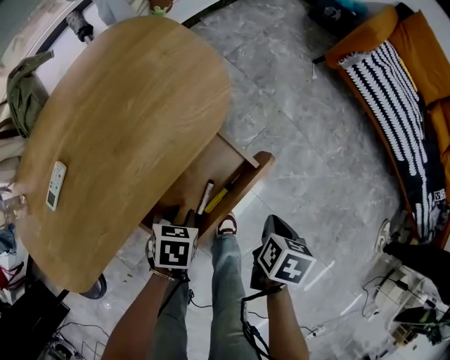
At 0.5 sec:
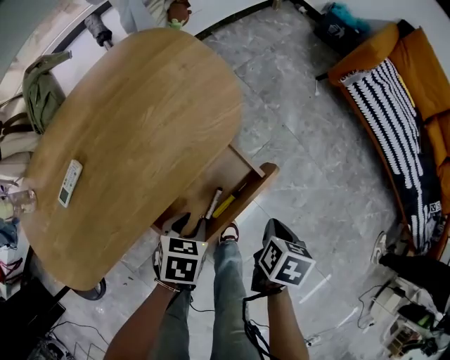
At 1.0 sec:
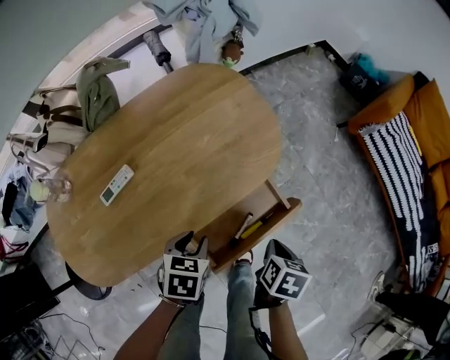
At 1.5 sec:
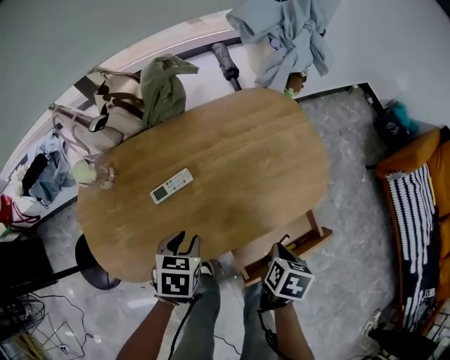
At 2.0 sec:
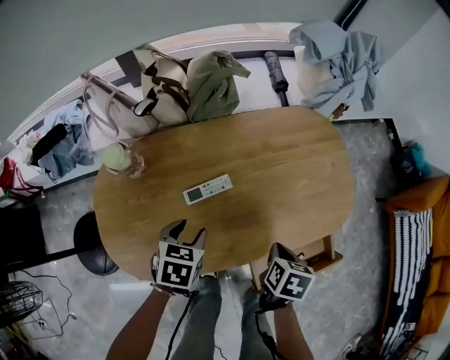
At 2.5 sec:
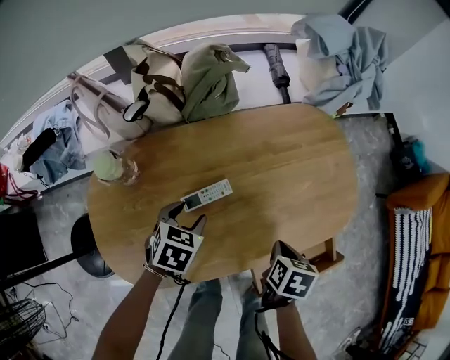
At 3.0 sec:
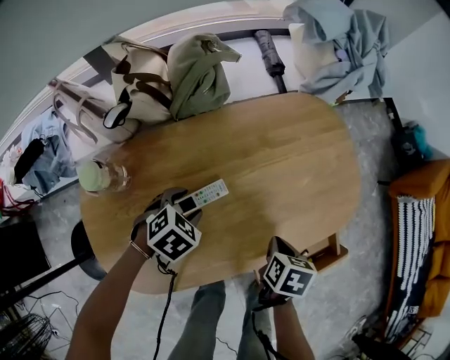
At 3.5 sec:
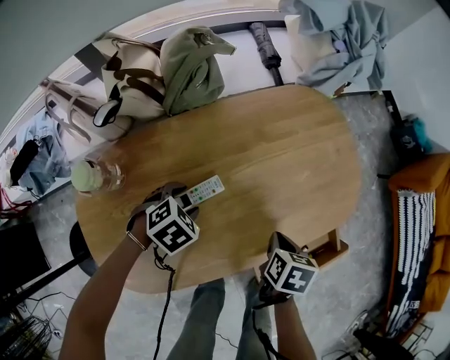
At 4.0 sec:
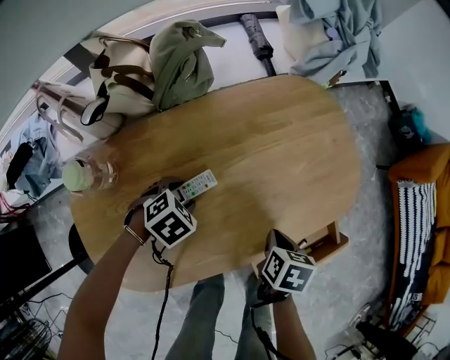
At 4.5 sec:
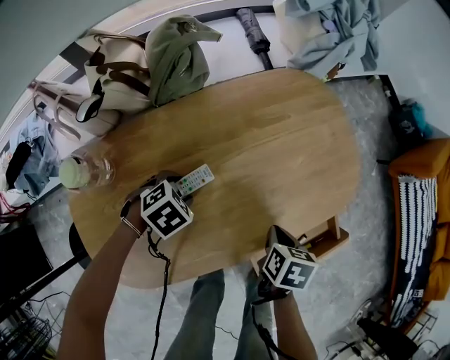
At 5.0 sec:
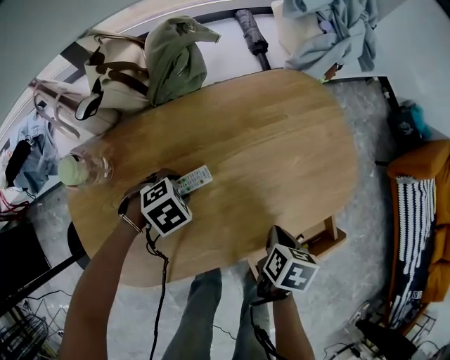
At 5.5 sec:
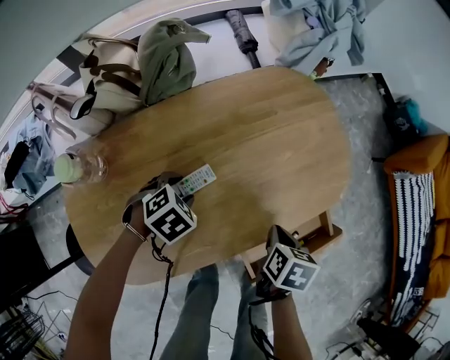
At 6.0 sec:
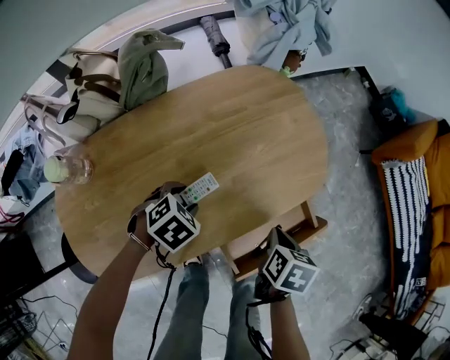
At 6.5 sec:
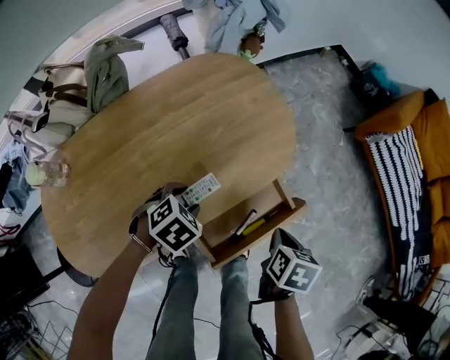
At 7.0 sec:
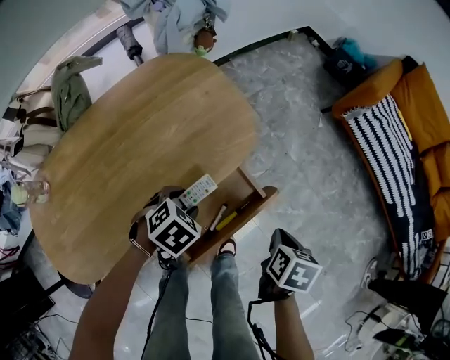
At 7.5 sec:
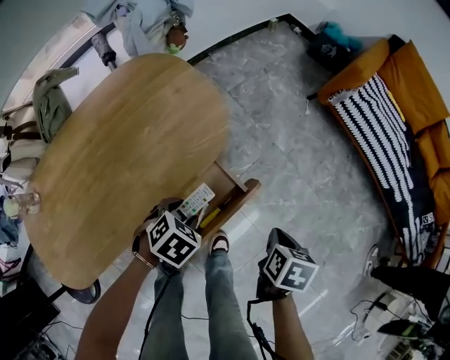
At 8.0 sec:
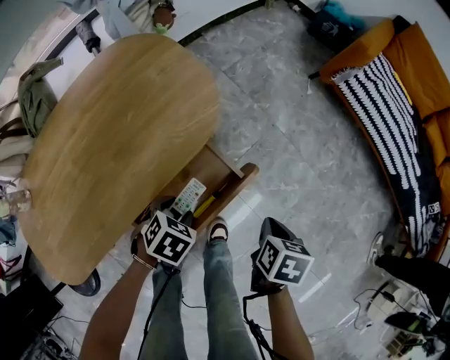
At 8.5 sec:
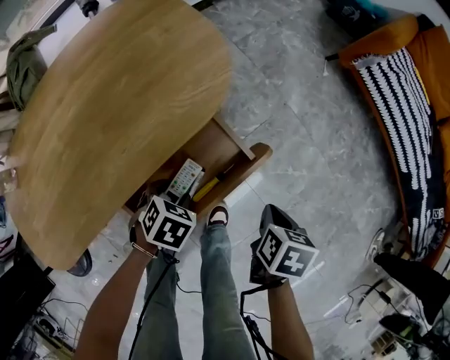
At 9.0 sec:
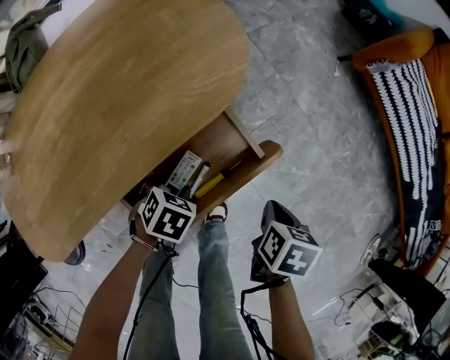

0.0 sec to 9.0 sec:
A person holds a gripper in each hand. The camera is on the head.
0.0 sec to 2.0 sec: The left gripper ends up approximately 40 cm from where it was, and rotates approximately 30 degrees; the right gripper changes place by roughly 35 cm, and turns by roughly 40 degrees.
2.0 sec to 4.5 sec: The left gripper ends up approximately 15 cm from where it was, and rolls clockwise, seen from behind, by some 40 degrees, while the right gripper ends up some 5 cm from where it was.
4.5 sec to 7.0 sec: The left gripper changes place by some 35 cm, while the right gripper changes place by roughly 35 cm, and swivels approximately 20 degrees.
7.0 sec to 9.0 sec: The grippers both shift downward by approximately 15 cm.

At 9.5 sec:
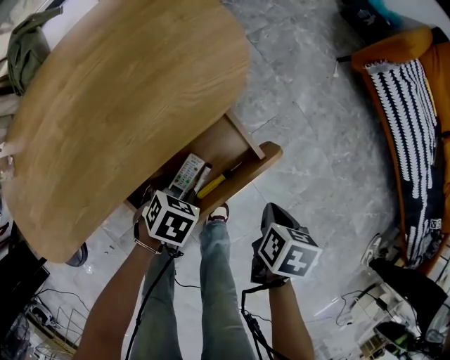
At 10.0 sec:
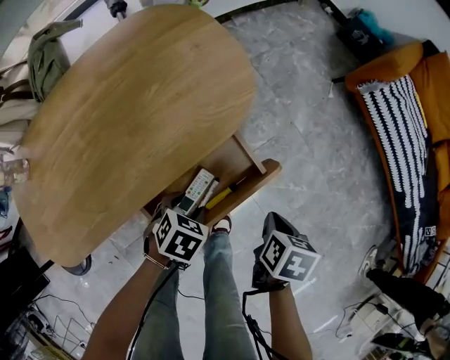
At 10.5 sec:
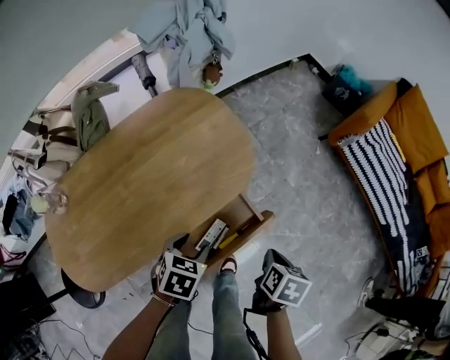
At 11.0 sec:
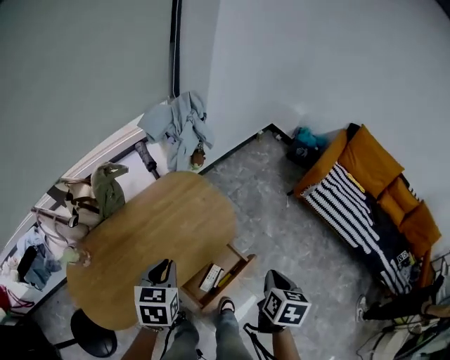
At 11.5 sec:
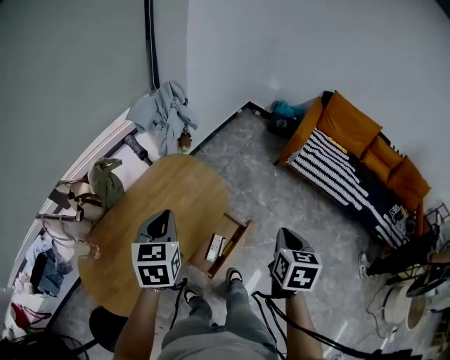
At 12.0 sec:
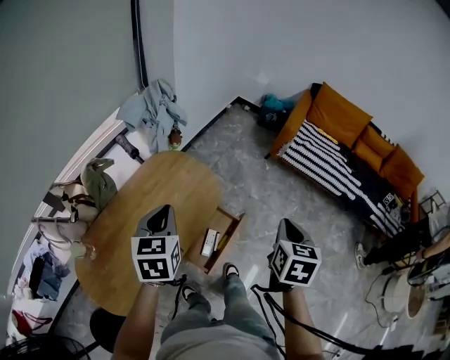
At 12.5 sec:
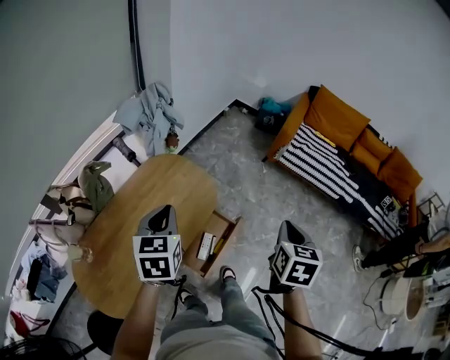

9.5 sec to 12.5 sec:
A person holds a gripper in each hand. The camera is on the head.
9.5 sec to 11.0 sec: Both grippers move upward, roughly 40 cm. The left gripper tips its fingers upward by about 30 degrees, and closes its fingers, while the right gripper swivels approximately 30 degrees.
11.0 sec to 12.5 sec: The left gripper shifts roughly 10 cm upward. The right gripper is displaced upward and to the right by approximately 15 cm.

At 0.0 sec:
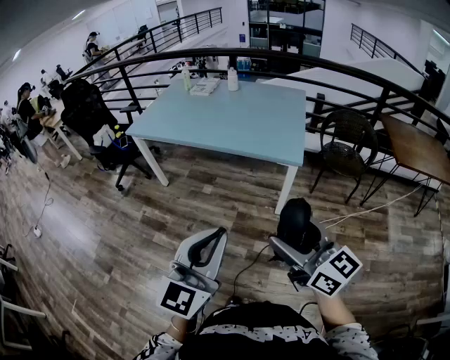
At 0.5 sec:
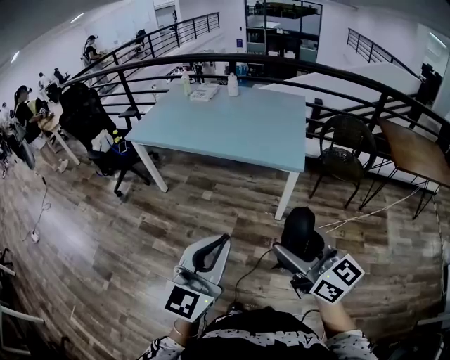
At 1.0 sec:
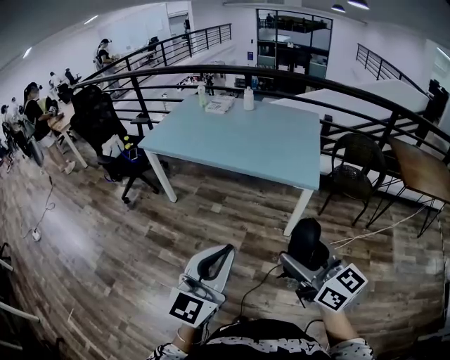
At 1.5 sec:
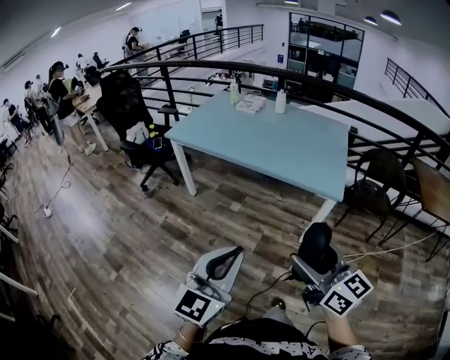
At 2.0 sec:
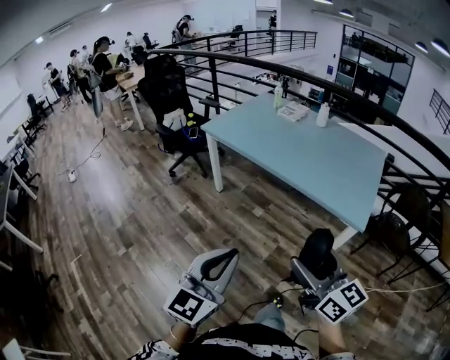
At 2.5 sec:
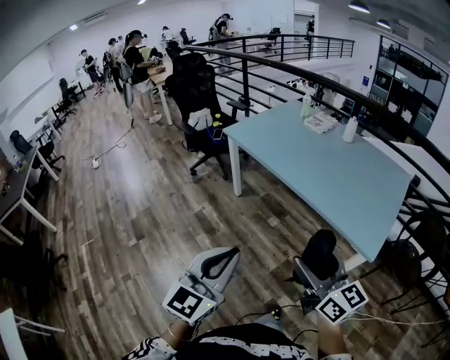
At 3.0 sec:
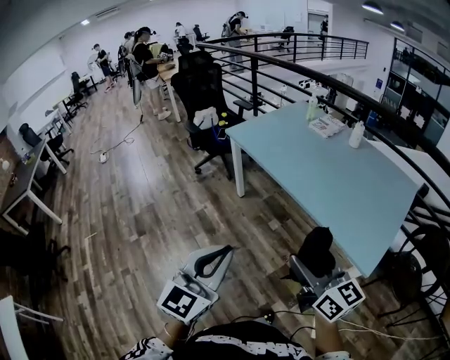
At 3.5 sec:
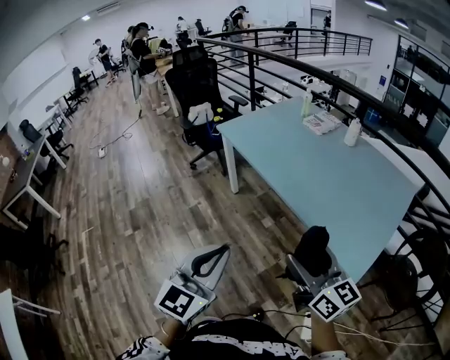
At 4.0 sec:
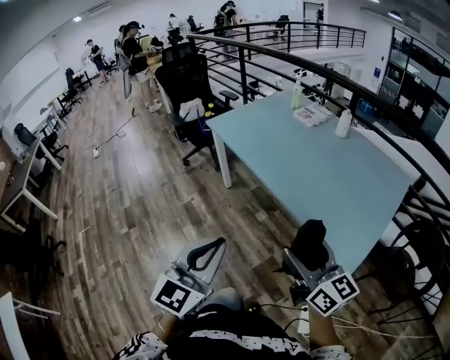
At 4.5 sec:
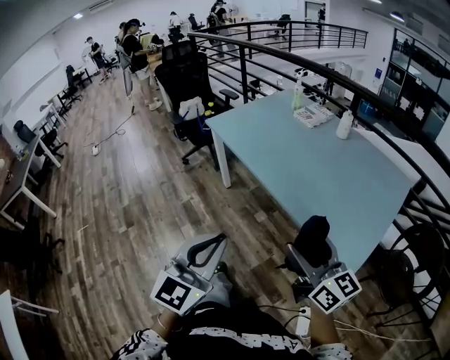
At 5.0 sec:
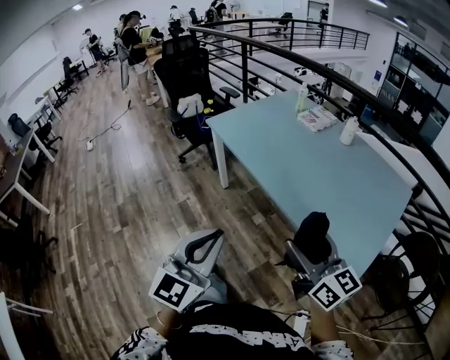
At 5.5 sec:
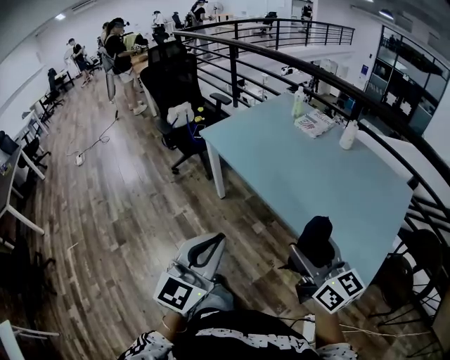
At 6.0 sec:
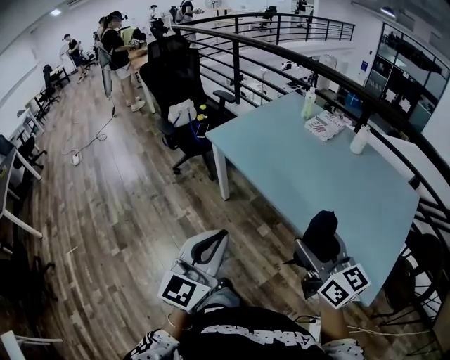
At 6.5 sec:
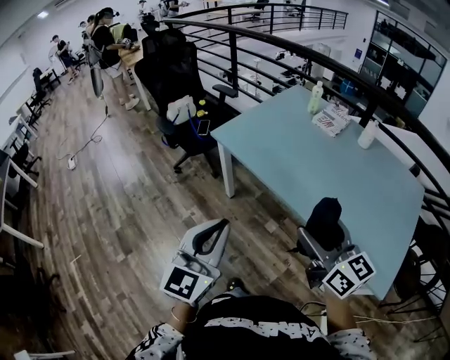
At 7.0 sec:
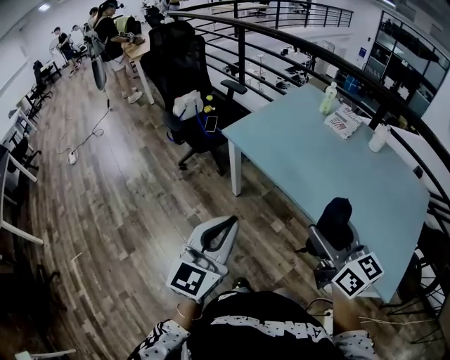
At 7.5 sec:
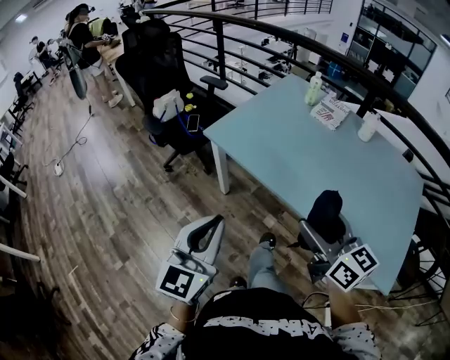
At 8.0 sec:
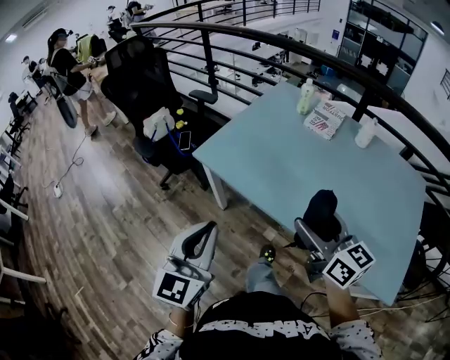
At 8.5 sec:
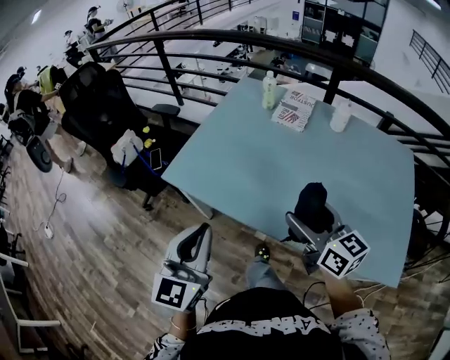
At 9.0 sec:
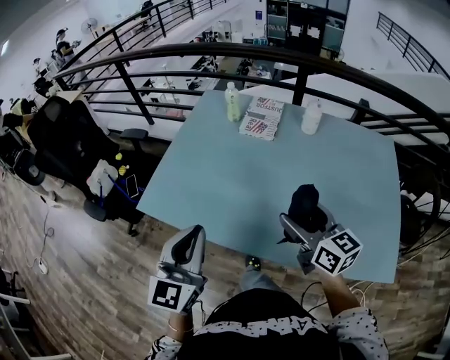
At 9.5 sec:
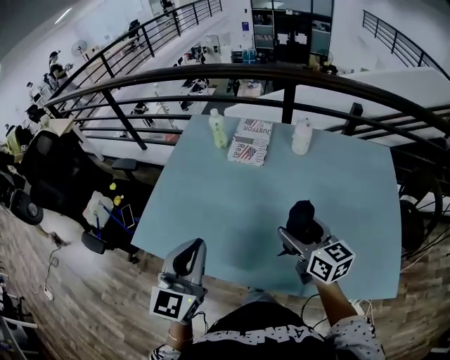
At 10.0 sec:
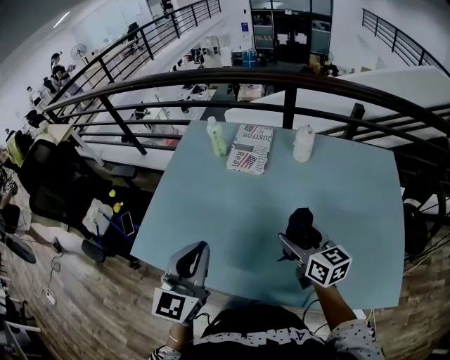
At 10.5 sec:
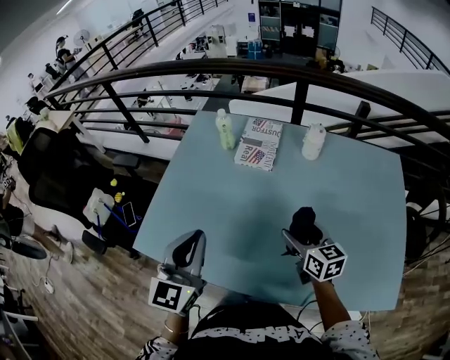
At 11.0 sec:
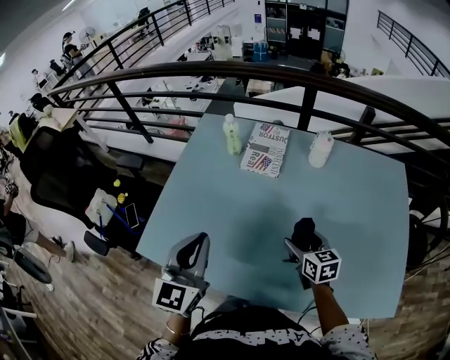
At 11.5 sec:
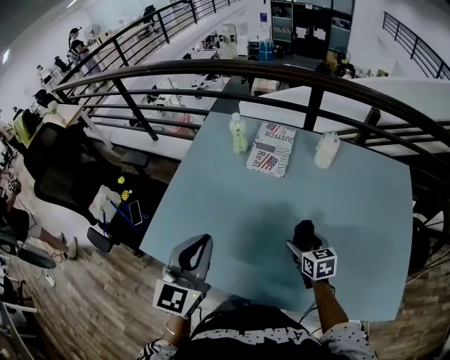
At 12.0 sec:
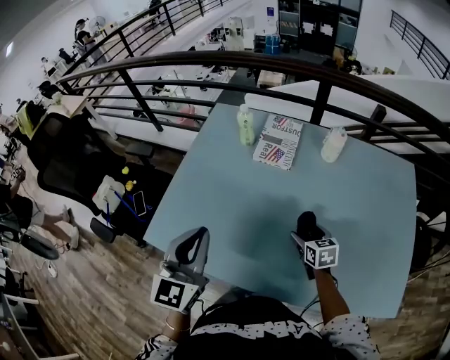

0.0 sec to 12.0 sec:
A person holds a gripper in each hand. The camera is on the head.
0.0 sec to 2.0 sec: The two grippers go roughly 20 cm to the left and forward.
2.0 sec to 4.0 sec: Both grippers travel together to the right and forward, approximately 30 cm.
4.0 sec to 6.0 sec: The two grippers go some 30 cm forward and to the left.
6.0 sec to 8.0 sec: The left gripper moves forward and to the left, roughly 25 cm. Meanwhile the right gripper goes about 25 cm forward.
8.0 sec to 10.0 sec: The left gripper moves forward and to the right, roughly 40 cm, and swivels approximately 20 degrees, while the right gripper goes roughly 35 cm forward, to the right and downward, and swivels about 30 degrees.
10.0 sec to 12.0 sec: The left gripper goes roughly 10 cm to the left; the right gripper shifts approximately 15 cm downward, and changes its angle by roughly 30 degrees.

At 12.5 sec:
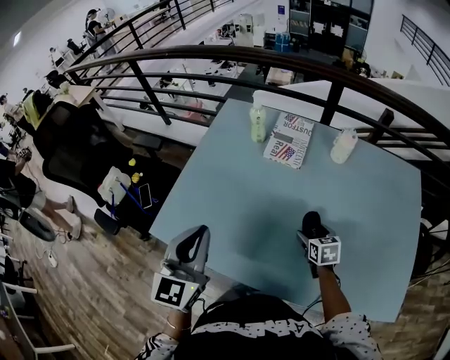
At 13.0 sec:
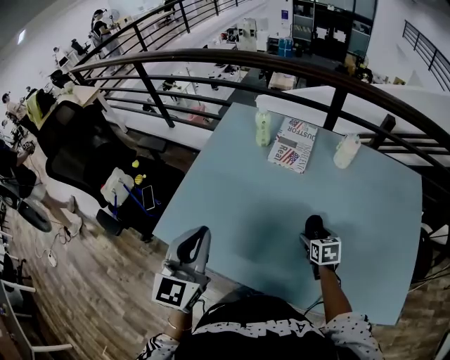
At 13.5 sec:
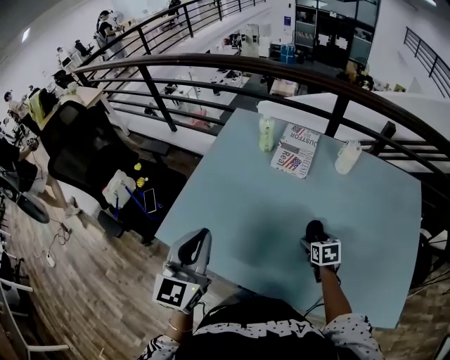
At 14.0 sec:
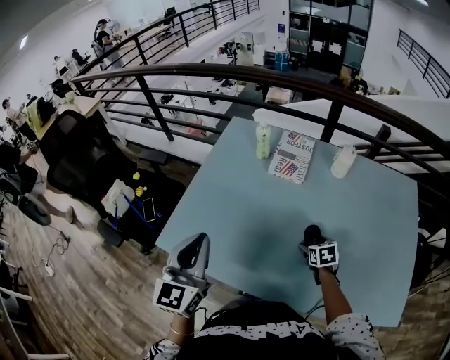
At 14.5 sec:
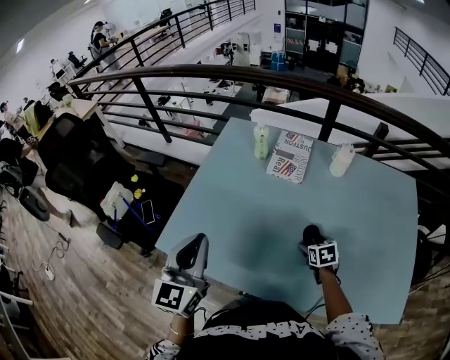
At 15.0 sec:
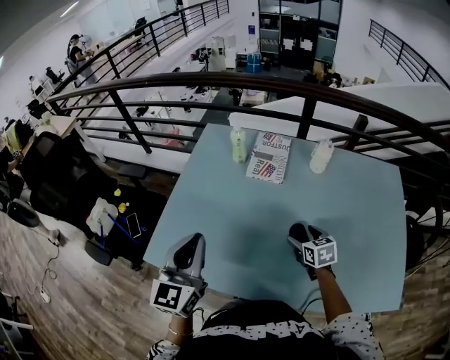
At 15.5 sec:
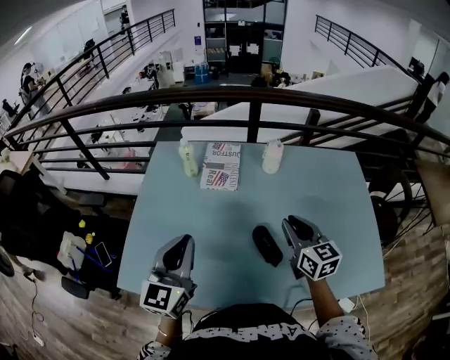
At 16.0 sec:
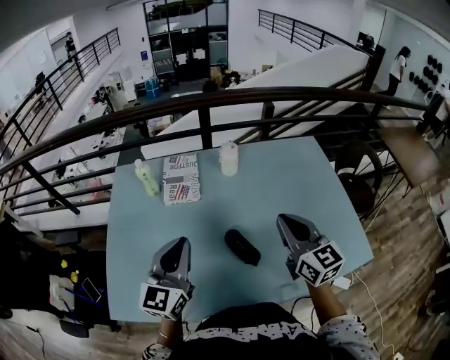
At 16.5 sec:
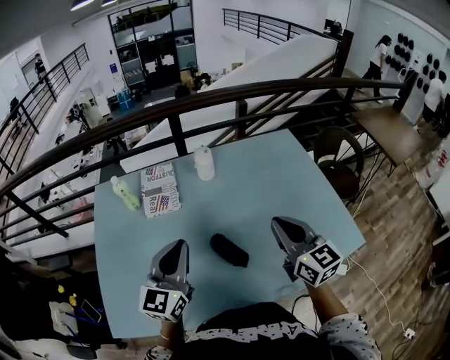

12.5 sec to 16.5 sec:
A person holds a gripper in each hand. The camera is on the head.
12.5 sec to 14.5 sec: The grippers make only small movements.
14.5 sec to 16.5 sec: The right gripper travels upward by approximately 30 cm, tips its fingers upward by roughly 50 degrees, and closes. The left gripper changes place by roughly 25 cm, and swivels approximately 40 degrees.
